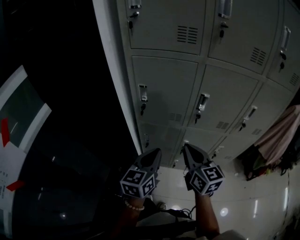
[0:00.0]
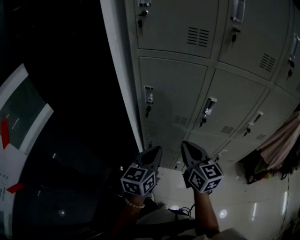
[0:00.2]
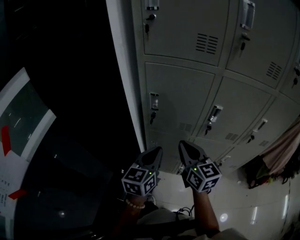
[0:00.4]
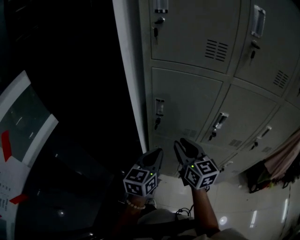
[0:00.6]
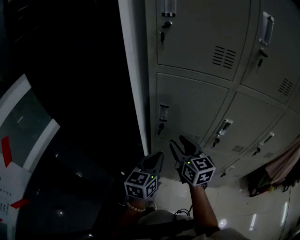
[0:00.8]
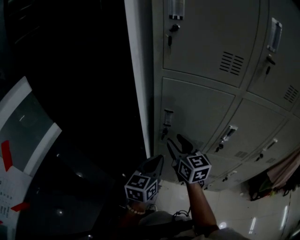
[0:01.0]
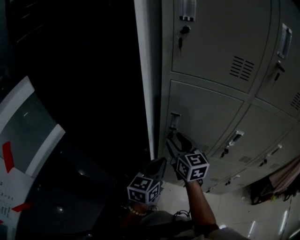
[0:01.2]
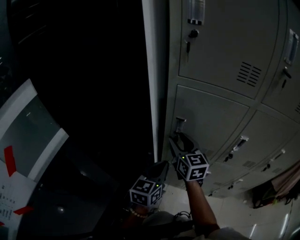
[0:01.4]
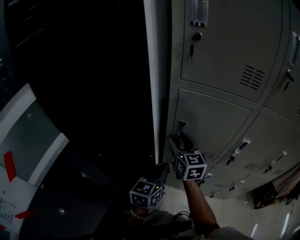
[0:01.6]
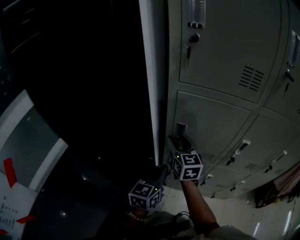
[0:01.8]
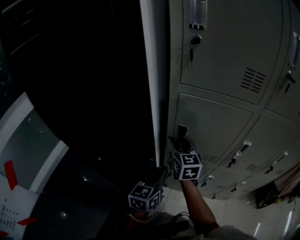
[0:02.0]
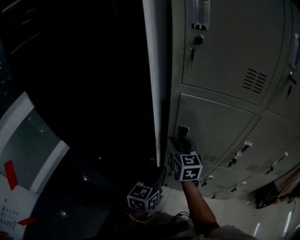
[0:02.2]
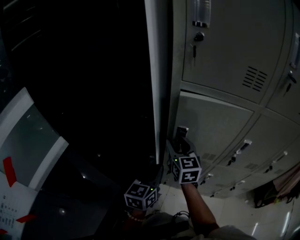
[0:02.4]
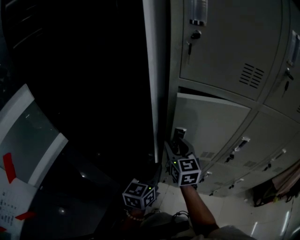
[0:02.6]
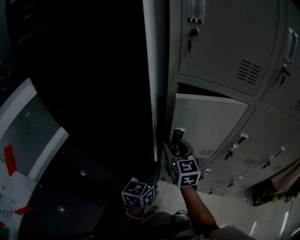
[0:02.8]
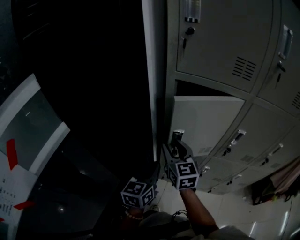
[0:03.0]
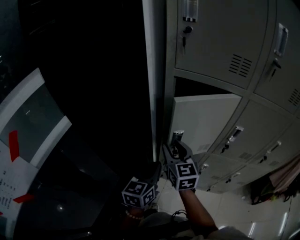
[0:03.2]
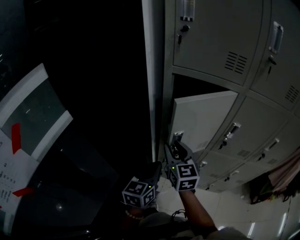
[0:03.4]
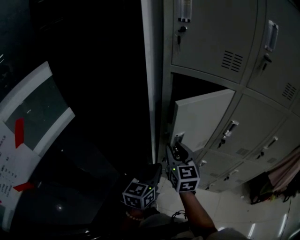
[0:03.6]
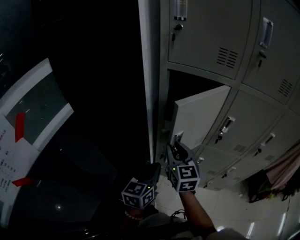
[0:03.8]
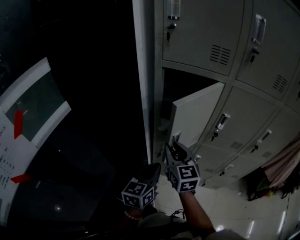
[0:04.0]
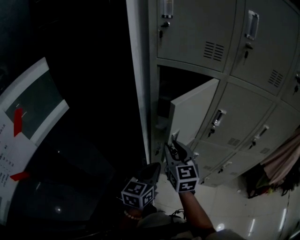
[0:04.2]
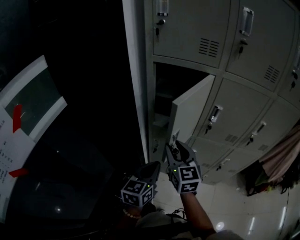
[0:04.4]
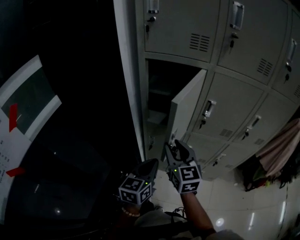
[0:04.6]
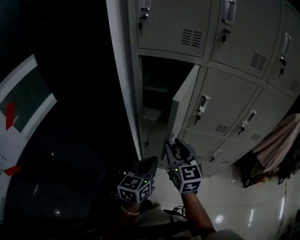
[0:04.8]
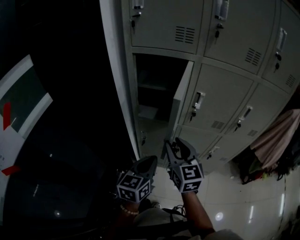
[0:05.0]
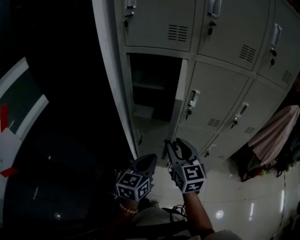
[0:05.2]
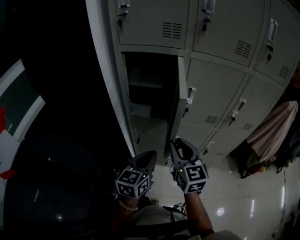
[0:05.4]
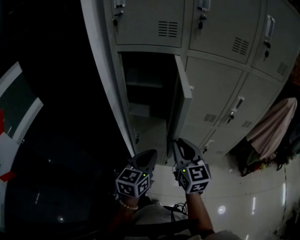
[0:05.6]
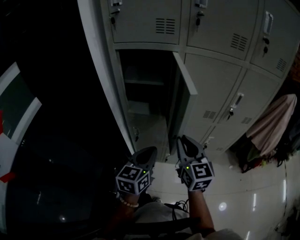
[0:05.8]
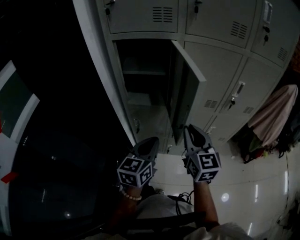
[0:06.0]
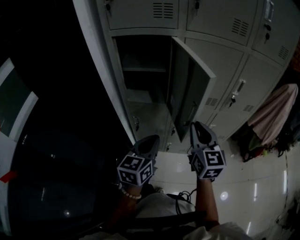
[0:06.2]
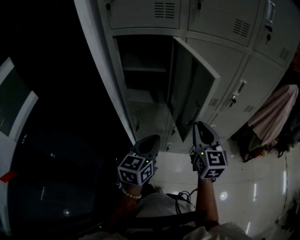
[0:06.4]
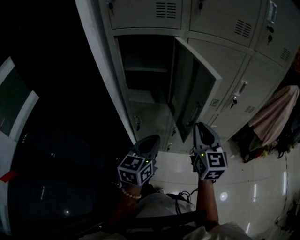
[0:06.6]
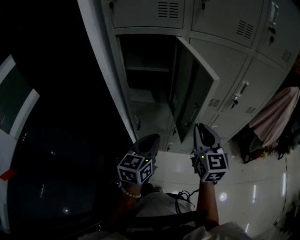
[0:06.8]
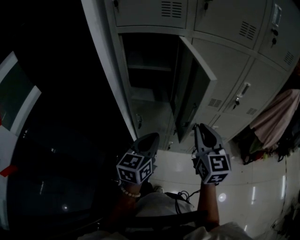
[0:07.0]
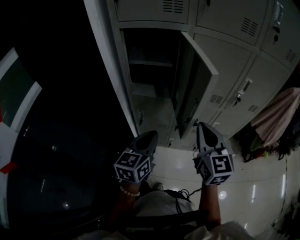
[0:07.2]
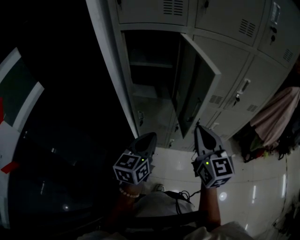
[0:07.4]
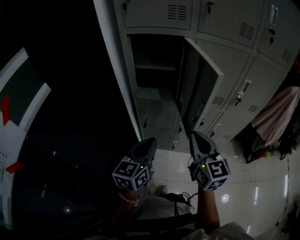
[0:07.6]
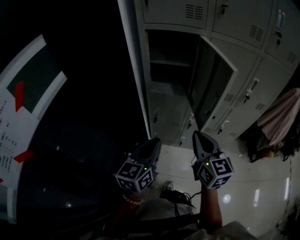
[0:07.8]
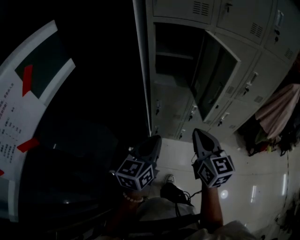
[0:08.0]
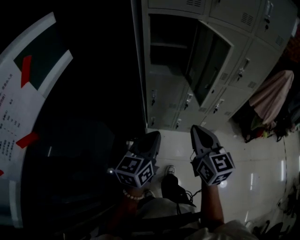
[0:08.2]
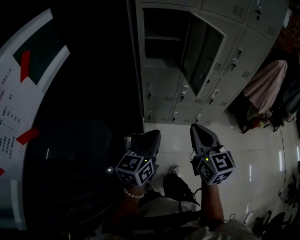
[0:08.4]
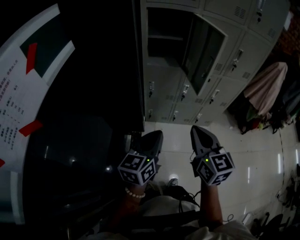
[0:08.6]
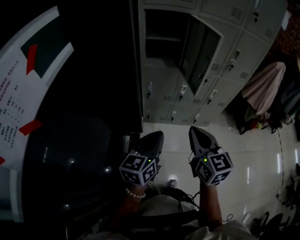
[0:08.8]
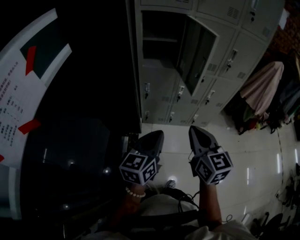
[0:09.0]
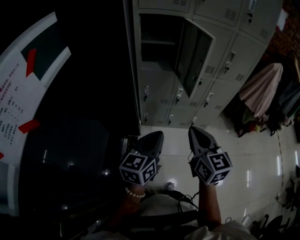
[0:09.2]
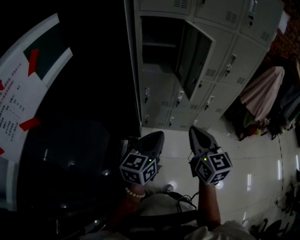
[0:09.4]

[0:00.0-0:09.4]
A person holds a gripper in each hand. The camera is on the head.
0:00.0 to 0:01.6: The right gripper travels forward and to the left by approximately 30 cm, and opens up. The left gripper moves forward and to the left, some 15 cm.
0:01.6 to 0:03.2: The left gripper shifts about 5 cm backward, while the right gripper travels backward by some 10 cm.
0:03.2 to 0:04.8: Both grippers travel together backward and to the right, some 15 cm.
0:04.8 to 0:06.2: The left gripper moves to the right, roughly 5 cm, while the right gripper goes approximately 15 cm to the right, and closes up.
0:06.2 to 0:07.8: The two grippers go roughly 15 cm backward and to the left.
0:07.8 to 0:09.4: The grippers both shift backward by approximately 15 cm.

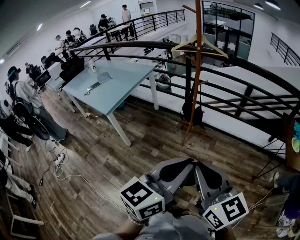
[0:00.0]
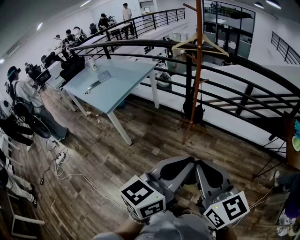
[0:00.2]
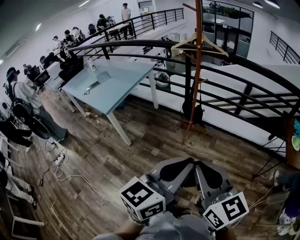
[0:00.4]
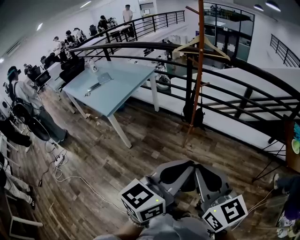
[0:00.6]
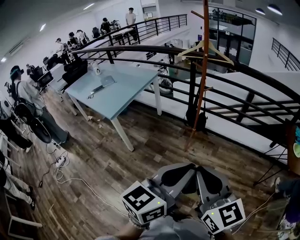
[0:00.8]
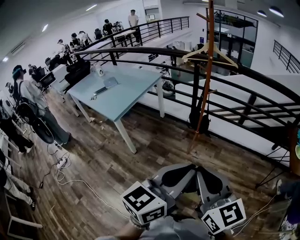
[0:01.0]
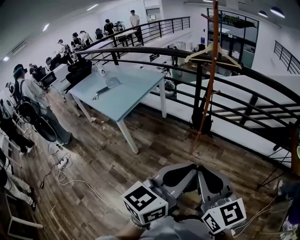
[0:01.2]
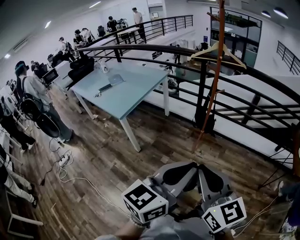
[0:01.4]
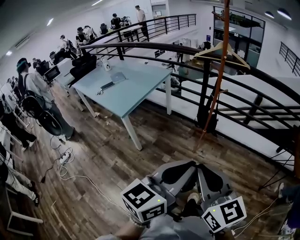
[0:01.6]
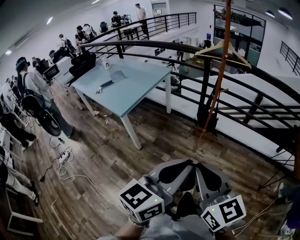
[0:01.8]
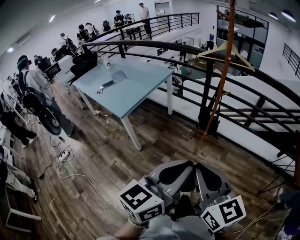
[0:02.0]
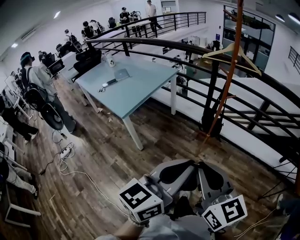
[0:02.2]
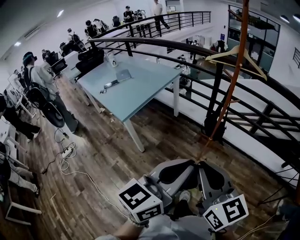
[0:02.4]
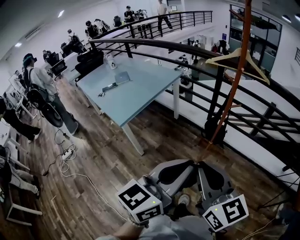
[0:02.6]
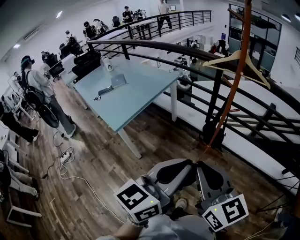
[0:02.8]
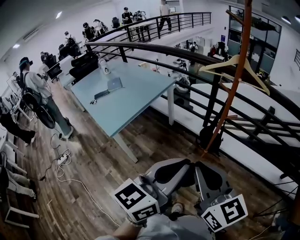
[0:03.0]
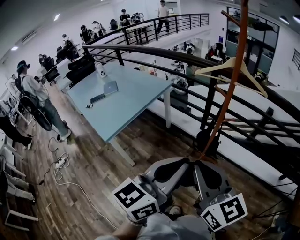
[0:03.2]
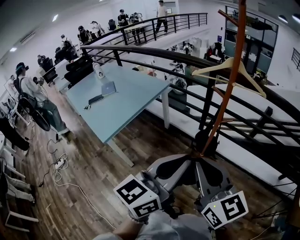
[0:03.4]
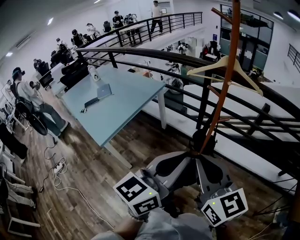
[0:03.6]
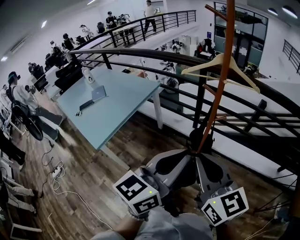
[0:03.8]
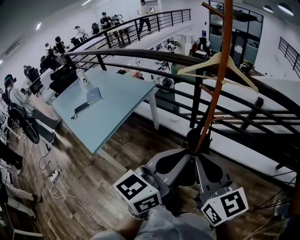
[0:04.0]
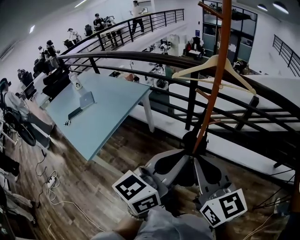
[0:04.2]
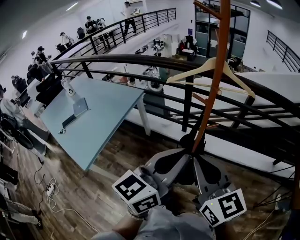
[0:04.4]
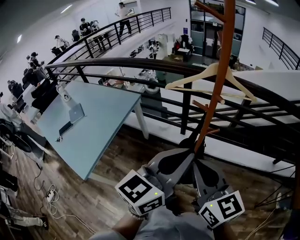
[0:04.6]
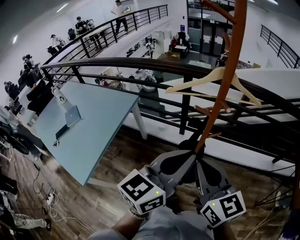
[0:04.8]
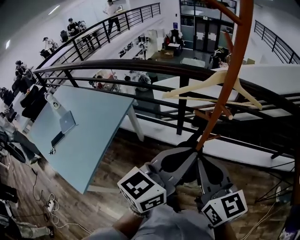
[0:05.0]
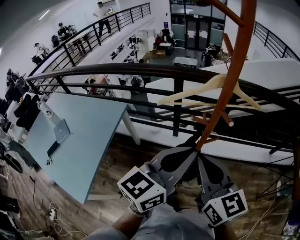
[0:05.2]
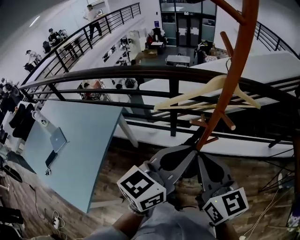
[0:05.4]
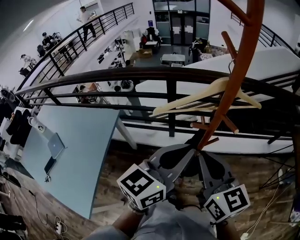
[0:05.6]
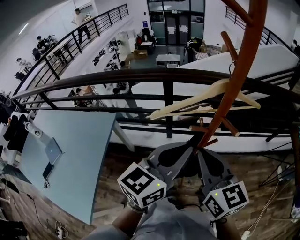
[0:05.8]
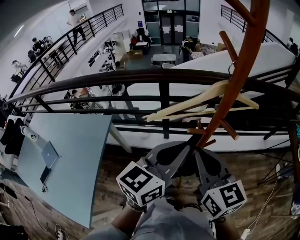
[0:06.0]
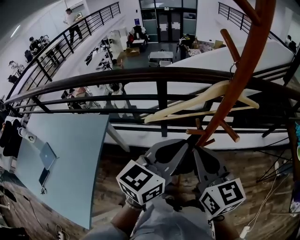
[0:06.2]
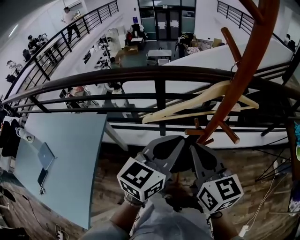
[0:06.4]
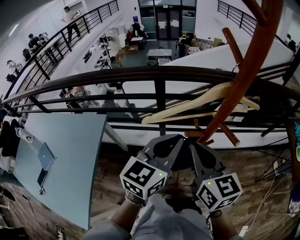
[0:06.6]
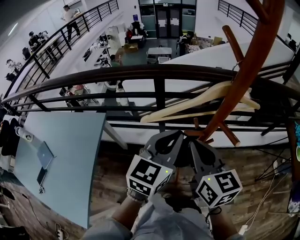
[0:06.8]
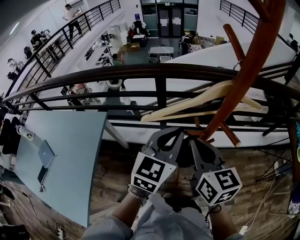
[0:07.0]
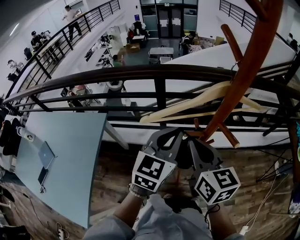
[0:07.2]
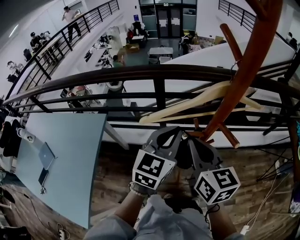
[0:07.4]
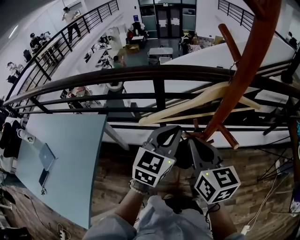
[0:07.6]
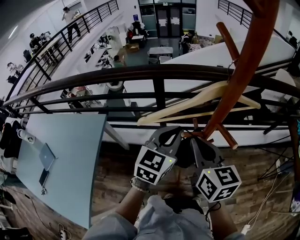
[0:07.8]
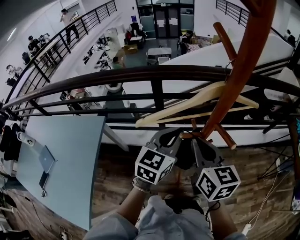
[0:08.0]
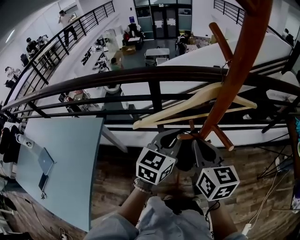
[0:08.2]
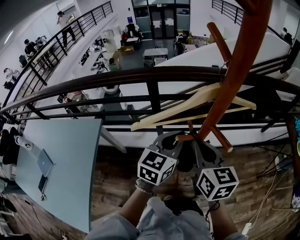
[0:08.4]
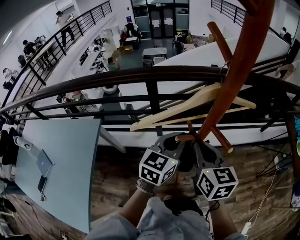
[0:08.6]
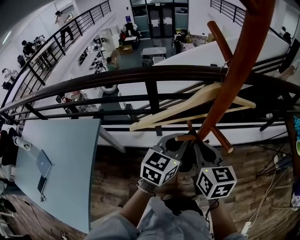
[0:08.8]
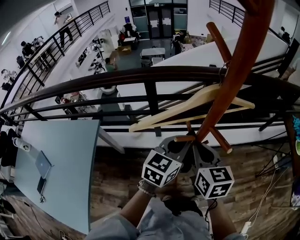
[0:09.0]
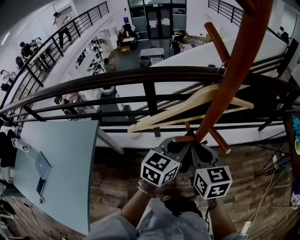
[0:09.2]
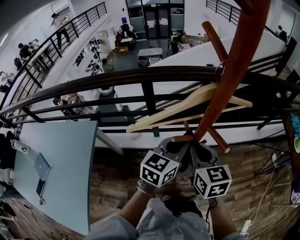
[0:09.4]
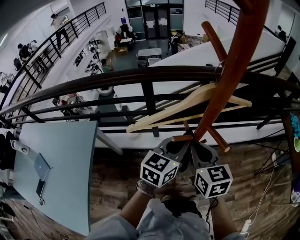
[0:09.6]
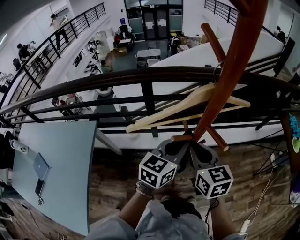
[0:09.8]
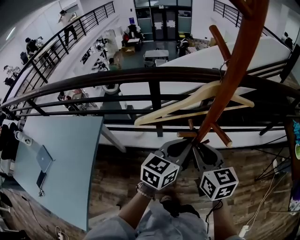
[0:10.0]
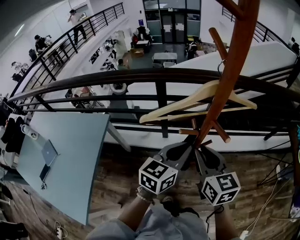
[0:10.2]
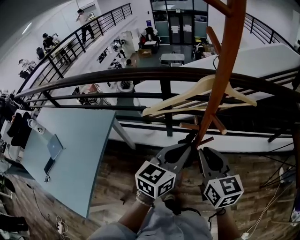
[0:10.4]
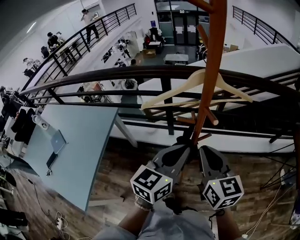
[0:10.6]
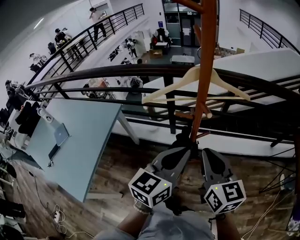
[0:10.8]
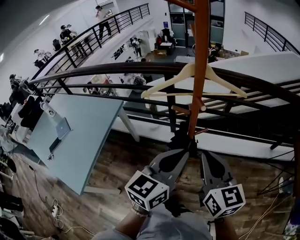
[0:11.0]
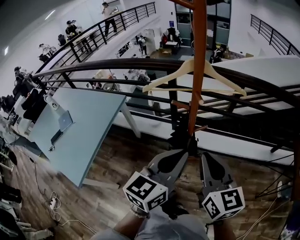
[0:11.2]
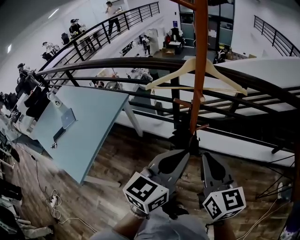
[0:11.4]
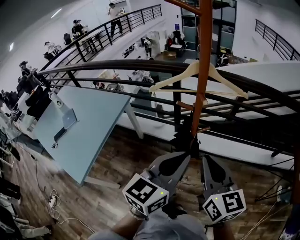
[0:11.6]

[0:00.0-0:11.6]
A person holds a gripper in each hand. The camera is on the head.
0:00.0 to 0:01.4: The grippers both shift to the left by some 10 cm.
0:01.4 to 0:02.8: Both grippers travel together forward, roughly 25 cm.
0:02.8 to 0:04.4: The two grippers go approximately 25 cm forward.
0:04.4 to 0:05.8: The grippers both shift forward by roughly 20 cm. The left gripper turns by roughly 20 degrees, while the right gripper swivels some 20 degrees.
0:05.8 to 0:07.2: The left gripper is displaced forward and downward by roughly 10 cm, and rotates roughly 20 degrees, while the right gripper shifts some 5 cm forward.
0:07.2 to 0:08.8: The right gripper changes place by approximately 5 cm. Meanwhile the left gripper shifts roughly 10 cm downward and to the right.
0:08.8 to 0:10.2: The left gripper goes some 5 cm backward.
0:10.2 to 0:11.6: The right gripper moves backward, to the right and upward, some 20 cm, while the left gripper travels backward and upward by some 20 cm.

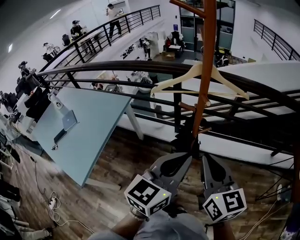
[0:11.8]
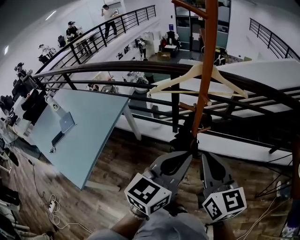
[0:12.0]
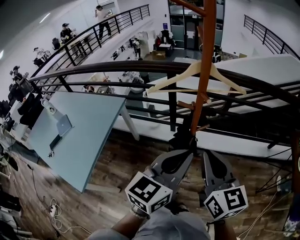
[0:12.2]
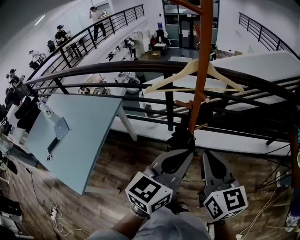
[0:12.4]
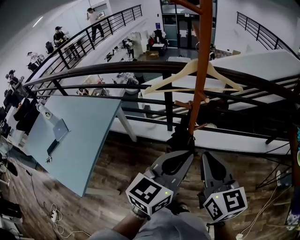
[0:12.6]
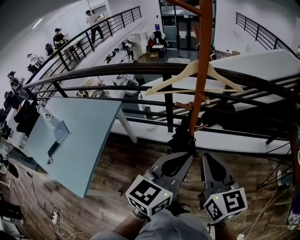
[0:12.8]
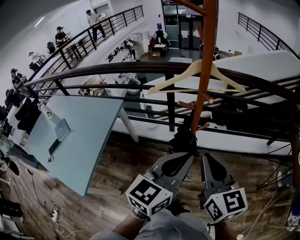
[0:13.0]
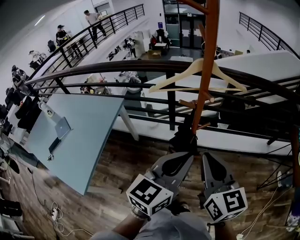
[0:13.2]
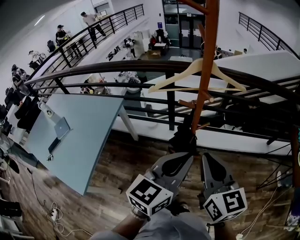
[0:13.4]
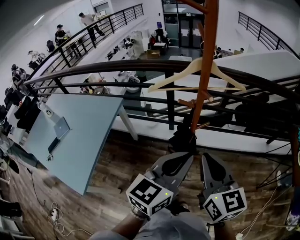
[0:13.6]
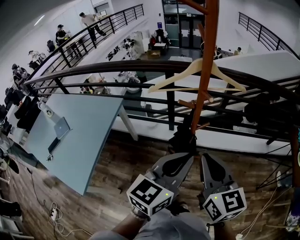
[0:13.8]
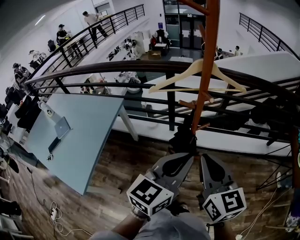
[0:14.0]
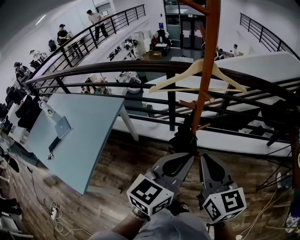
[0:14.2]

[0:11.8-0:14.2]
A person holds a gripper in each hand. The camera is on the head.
0:11.8 to 0:13.0: The grippers make only small movements.
0:13.0 to 0:14.2: Both grippers stay put.
